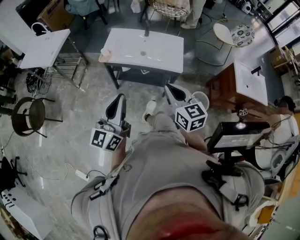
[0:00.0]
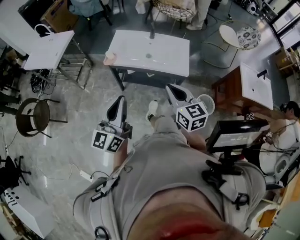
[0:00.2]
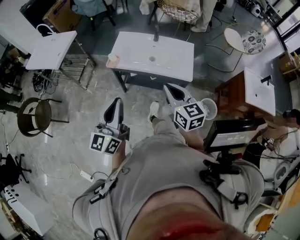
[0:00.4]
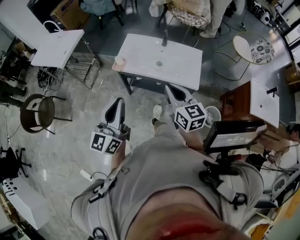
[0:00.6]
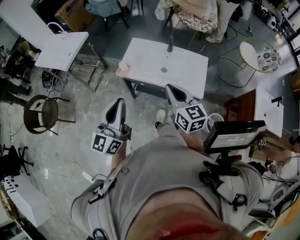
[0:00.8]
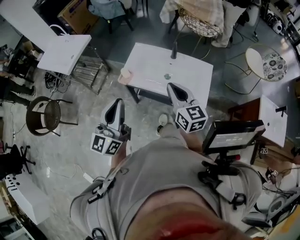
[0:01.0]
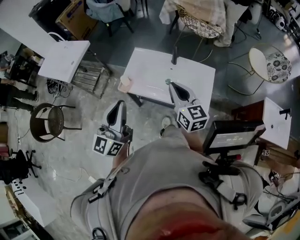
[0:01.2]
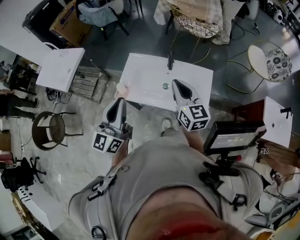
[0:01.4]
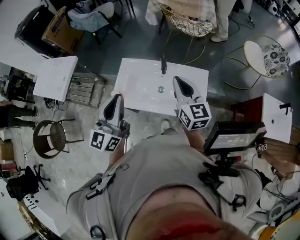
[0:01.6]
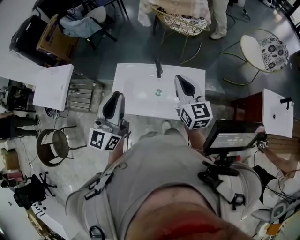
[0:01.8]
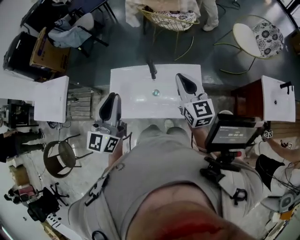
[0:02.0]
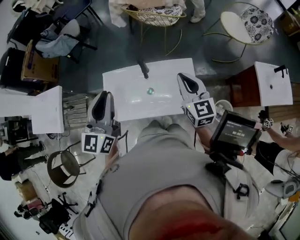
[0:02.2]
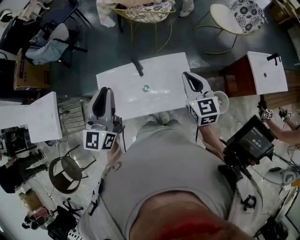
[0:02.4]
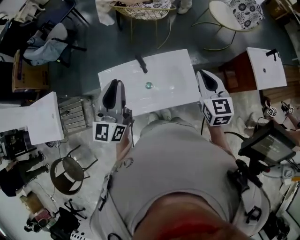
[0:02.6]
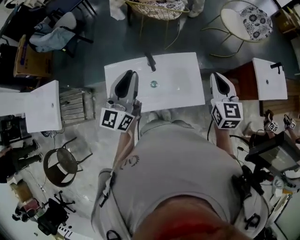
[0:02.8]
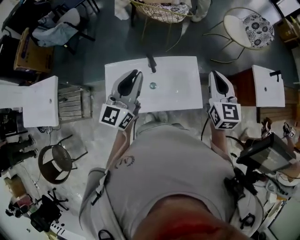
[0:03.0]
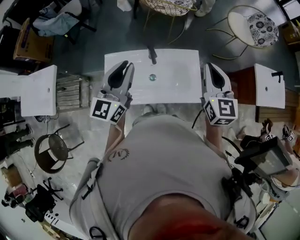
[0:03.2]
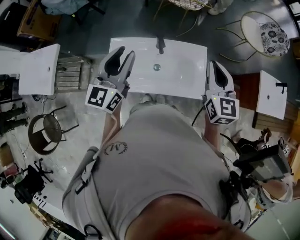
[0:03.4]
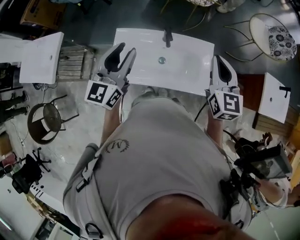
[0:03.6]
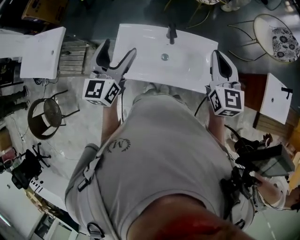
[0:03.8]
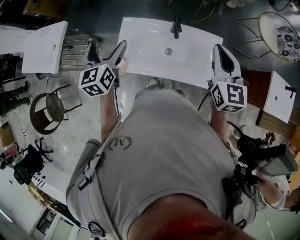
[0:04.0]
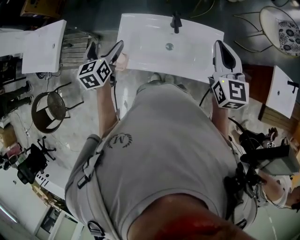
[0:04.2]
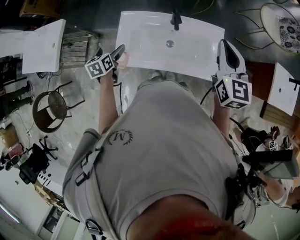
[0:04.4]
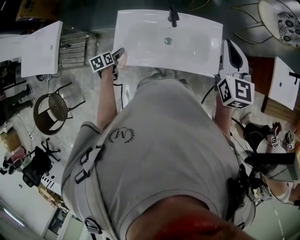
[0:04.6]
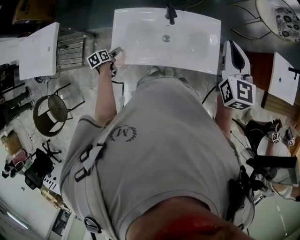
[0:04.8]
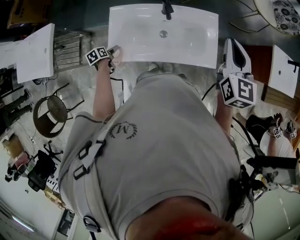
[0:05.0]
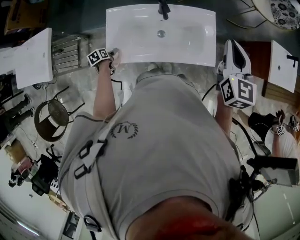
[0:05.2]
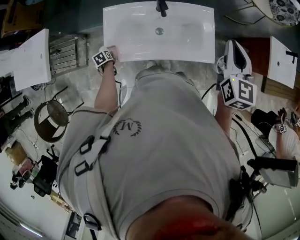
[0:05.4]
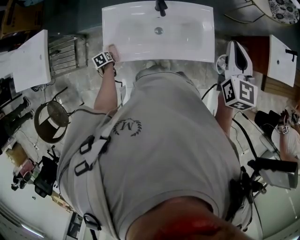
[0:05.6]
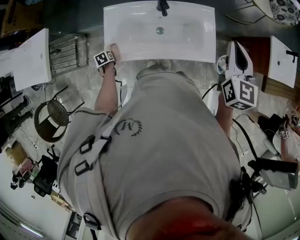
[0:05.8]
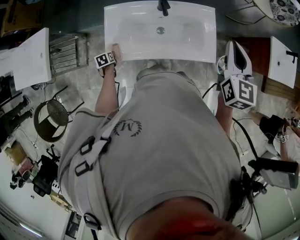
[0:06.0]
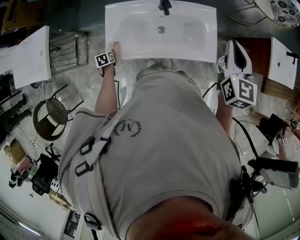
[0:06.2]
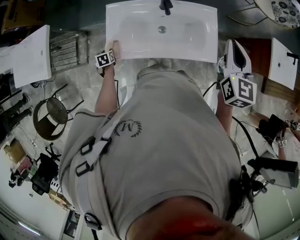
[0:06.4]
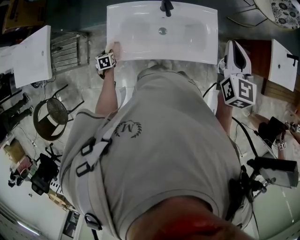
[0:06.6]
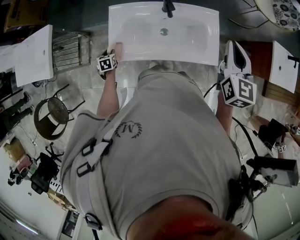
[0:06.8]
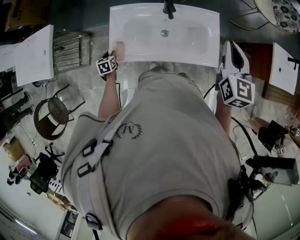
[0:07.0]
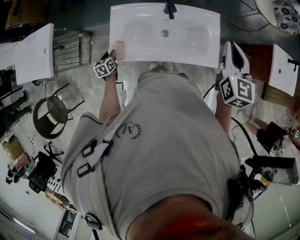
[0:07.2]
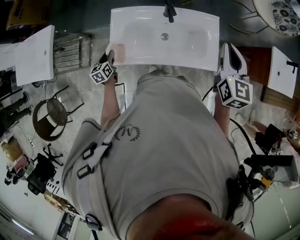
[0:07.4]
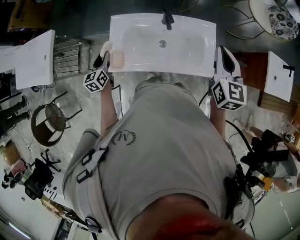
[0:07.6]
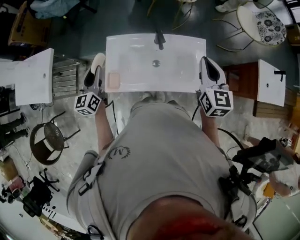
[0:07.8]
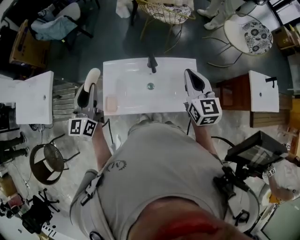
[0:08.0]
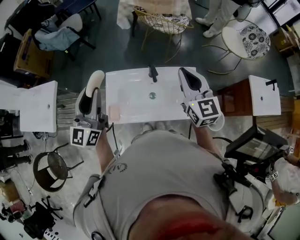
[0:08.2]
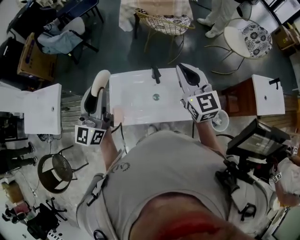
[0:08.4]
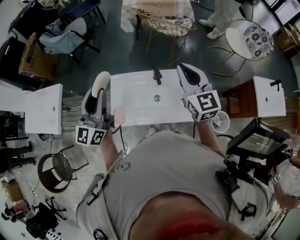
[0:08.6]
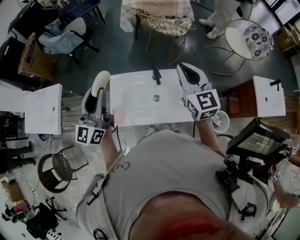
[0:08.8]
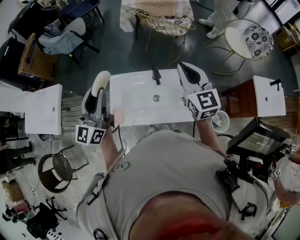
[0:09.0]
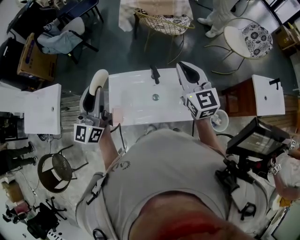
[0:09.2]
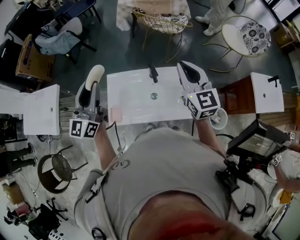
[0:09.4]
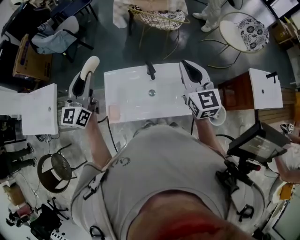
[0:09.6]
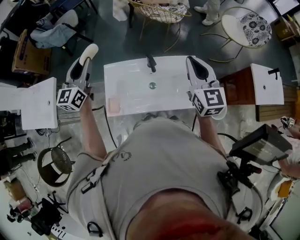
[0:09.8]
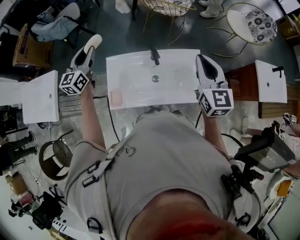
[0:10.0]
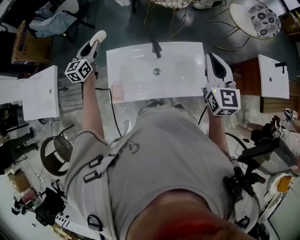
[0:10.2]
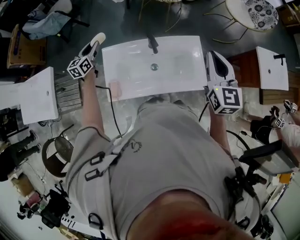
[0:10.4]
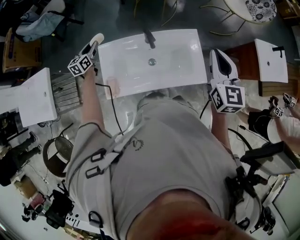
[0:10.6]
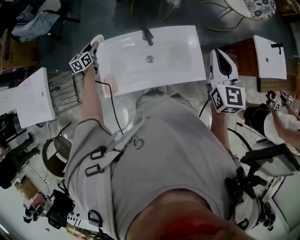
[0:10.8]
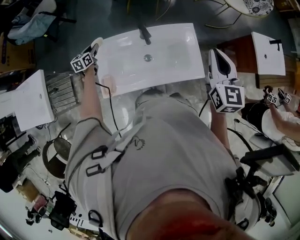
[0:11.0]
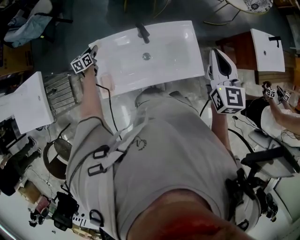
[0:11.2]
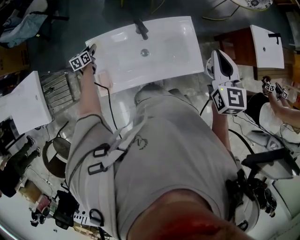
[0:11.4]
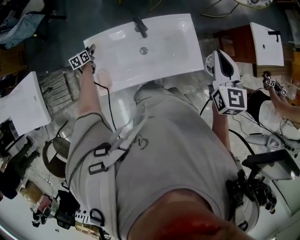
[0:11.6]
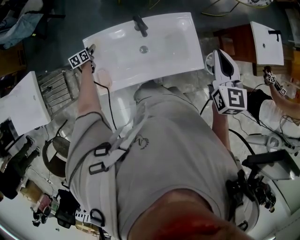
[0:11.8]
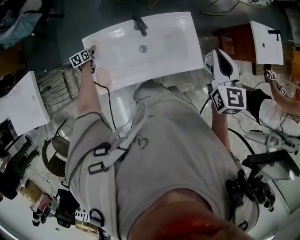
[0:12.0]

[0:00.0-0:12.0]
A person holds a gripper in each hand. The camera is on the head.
0:00.0 to 0:01.6: Both grippers are carried forward, about 40 cm.
0:01.6 to 0:03.0: The left gripper goes some 15 cm forward, and turns by about 20 degrees, while the right gripper shifts about 15 cm to the right, and rotates approximately 30 degrees.
0:03.0 to 0:04.4: The right gripper moves to the left, about 10 cm, while the left gripper travels downward and to the left by approximately 35 cm, angles its fingers downward, by some 50 degrees, and opens up.
0:04.4 to 0:06.0: The right gripper is displaced to the right by roughly 5 cm, while the left gripper moves downward, some 25 cm, swivels approximately 20 degrees, and closes its fingers.
0:06.0 to 0:07.6: The right gripper moves approximately 5 cm. Meanwhile the left gripper goes about 20 cm upward, and angles its fingers upward, by roughly 40 degrees.
0:07.6 to 0:09.0: The left gripper shifts about 35 cm upward, and tilts its fingers roughly 40 degrees upward. The right gripper is displaced upward, forward and to the left by about 15 cm, and swivels roughly 20 degrees.
0:09.0 to 0:10.4: The right gripper goes approximately 10 cm to the right. Meanwhile the left gripper is displaced downward and forward by roughly 30 cm, and angles its fingers downward, by roughly 30 degrees.
0:10.4 to 0:12.0: The right gripper ends up about 5 cm from where it was; the left gripper heads downward, covering roughly 30 cm, and rotates some 30 degrees.

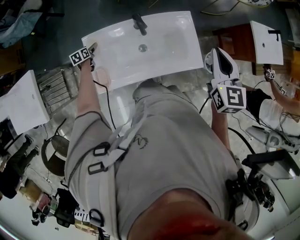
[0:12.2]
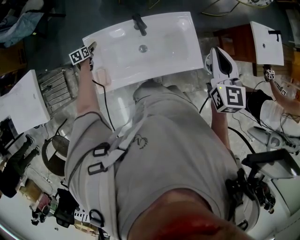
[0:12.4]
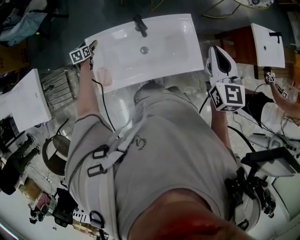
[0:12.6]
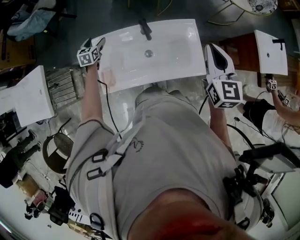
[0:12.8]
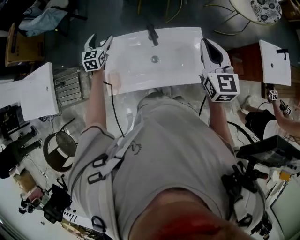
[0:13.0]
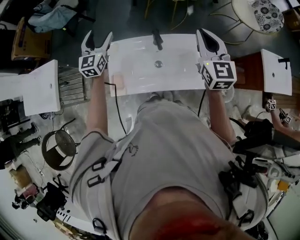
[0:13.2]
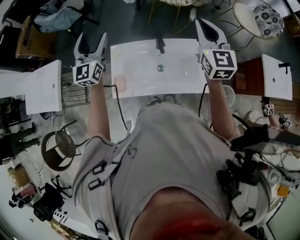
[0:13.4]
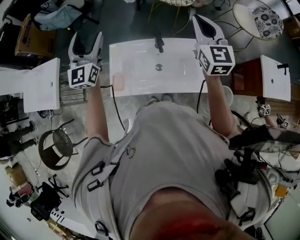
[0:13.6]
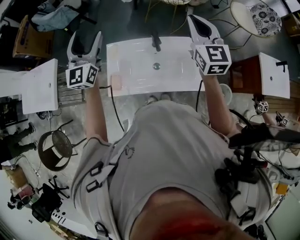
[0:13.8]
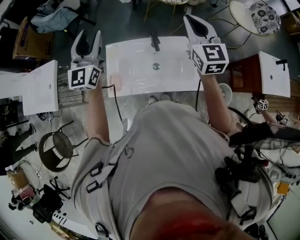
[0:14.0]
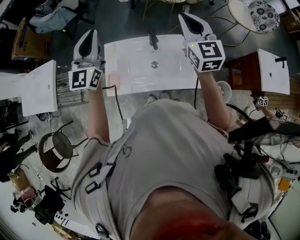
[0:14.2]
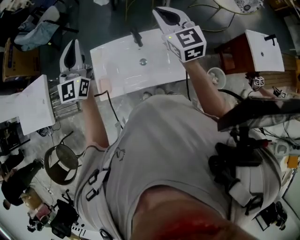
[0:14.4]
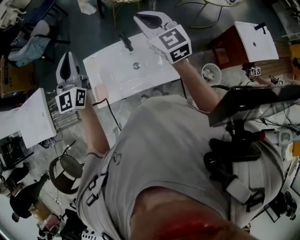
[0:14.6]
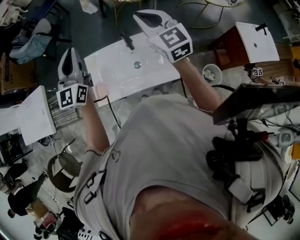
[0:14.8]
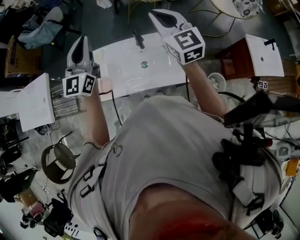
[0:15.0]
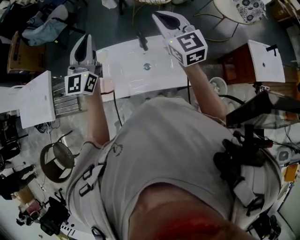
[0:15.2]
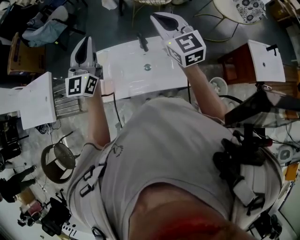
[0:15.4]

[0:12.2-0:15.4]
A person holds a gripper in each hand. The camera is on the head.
0:12.2 to 0:13.8: The right gripper shifts approximately 20 cm forward, to the left and upward, and turns by approximately 30 degrees. The left gripper is displaced upward by some 50 cm, and tips its fingers upward by approximately 60 degrees.
0:13.8 to 0:15.4: The right gripper heads to the left, covering about 5 cm. Meanwhile the left gripper shifts roughly 5 cm to the right, and closes.

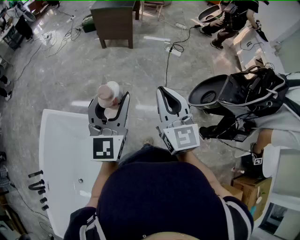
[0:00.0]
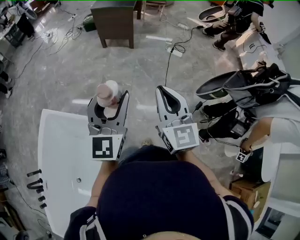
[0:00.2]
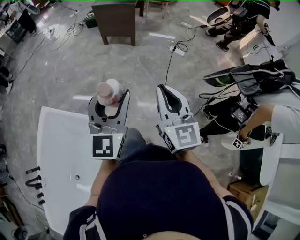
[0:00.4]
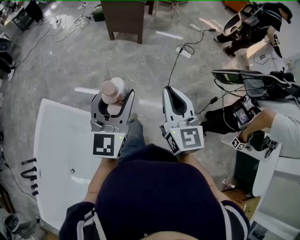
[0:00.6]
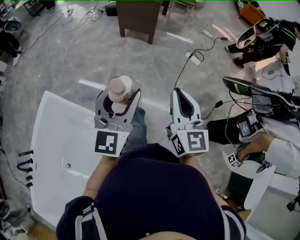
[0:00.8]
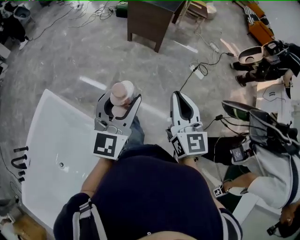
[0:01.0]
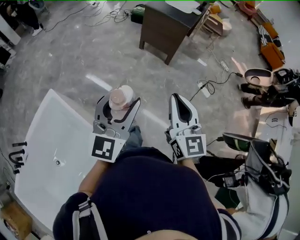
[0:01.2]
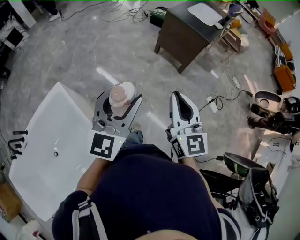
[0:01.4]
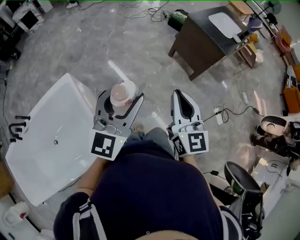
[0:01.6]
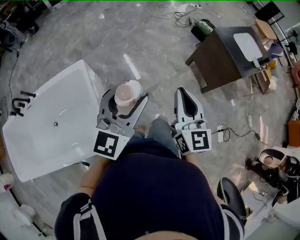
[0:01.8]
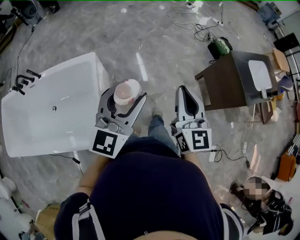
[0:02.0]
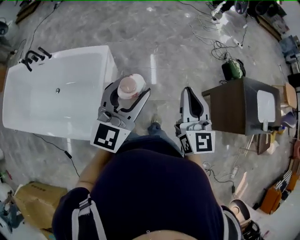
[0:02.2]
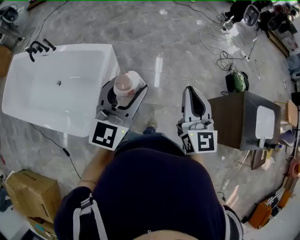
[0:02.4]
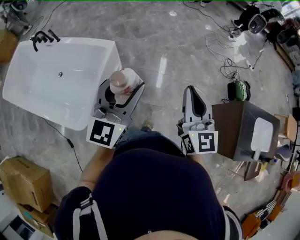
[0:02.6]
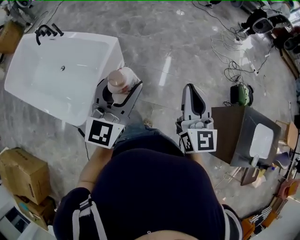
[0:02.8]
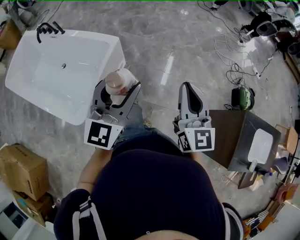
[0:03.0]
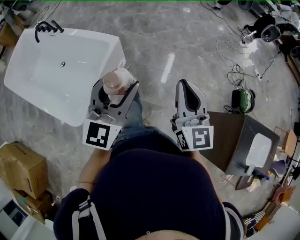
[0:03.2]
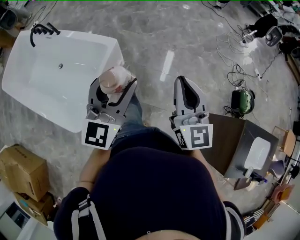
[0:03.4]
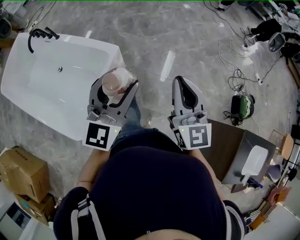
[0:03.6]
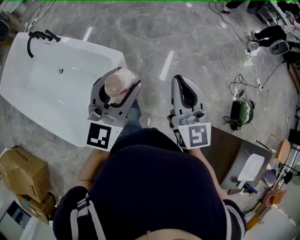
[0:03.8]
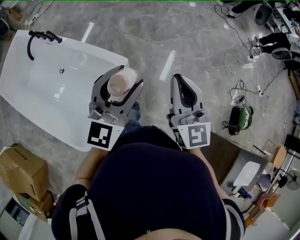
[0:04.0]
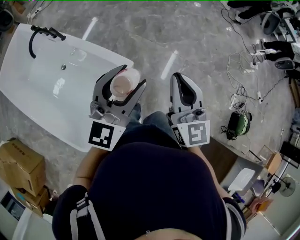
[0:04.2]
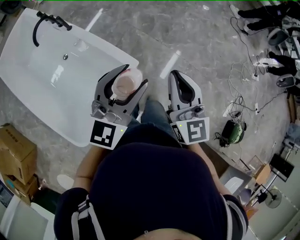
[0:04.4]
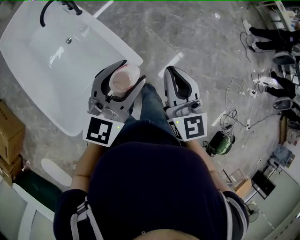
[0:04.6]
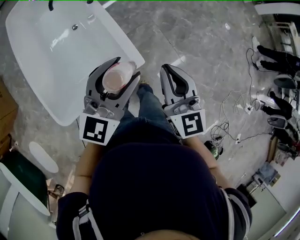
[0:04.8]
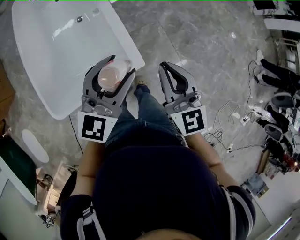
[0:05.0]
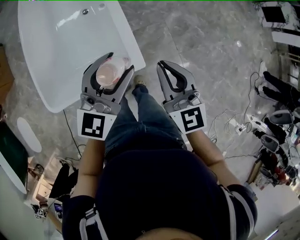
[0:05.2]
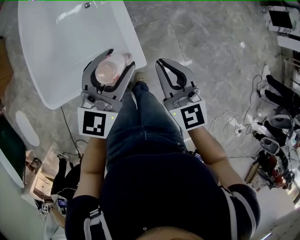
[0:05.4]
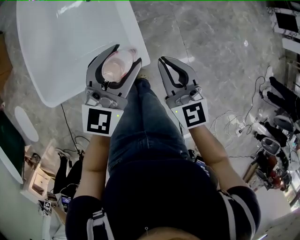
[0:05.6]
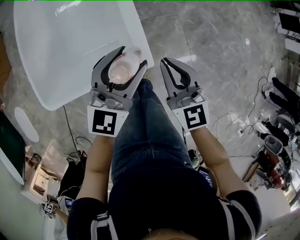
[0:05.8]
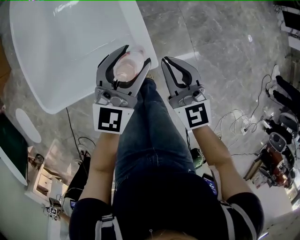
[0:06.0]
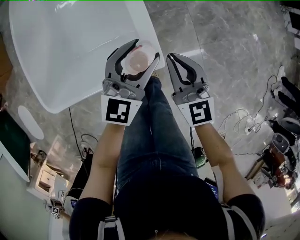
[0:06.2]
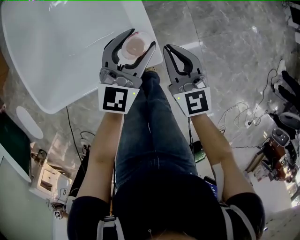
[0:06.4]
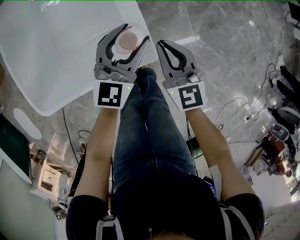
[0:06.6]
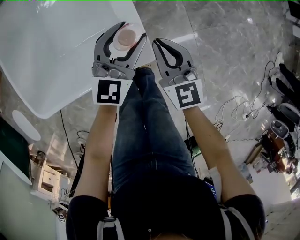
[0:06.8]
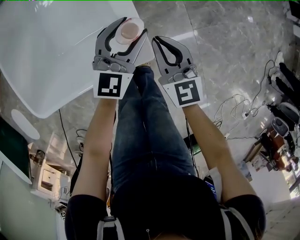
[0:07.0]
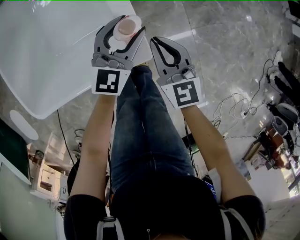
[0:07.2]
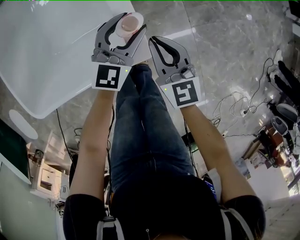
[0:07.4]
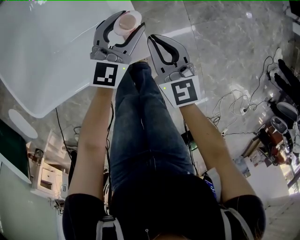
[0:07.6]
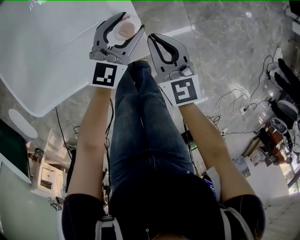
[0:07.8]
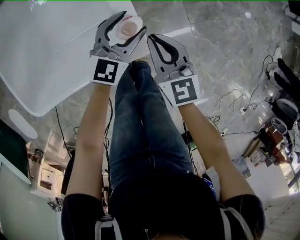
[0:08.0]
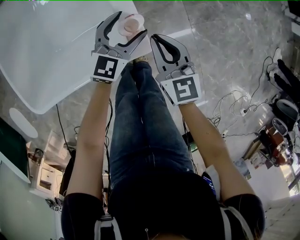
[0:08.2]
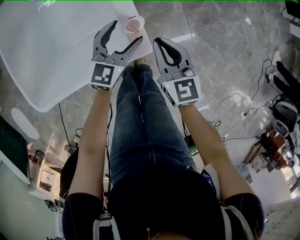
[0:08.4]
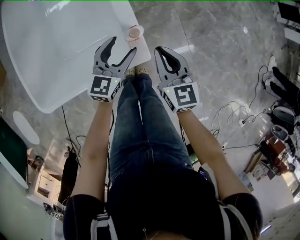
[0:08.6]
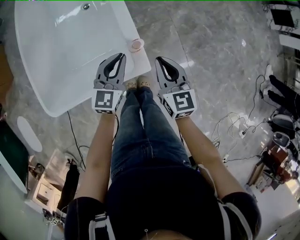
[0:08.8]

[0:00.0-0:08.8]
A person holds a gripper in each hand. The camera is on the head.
0:00.0 to 0:01.4: The left gripper changes place by approximately 35 cm, and changes its angle by some 20 degrees, while the right gripper moves some 40 cm, and changes its angle by about 30 degrees.
0:01.4 to 0:03.0: The right gripper moves approximately 40 cm, and turns by roughly 60 degrees. The left gripper ends up approximately 25 cm from where it was, and changes its angle by approximately 70 degrees.
0:03.0 to 0:04.4: Both grippers are carried forward and to the left, about 50 cm. The right gripper swivels approximately 20 degrees.
0:04.4 to 0:05.8: The grippers both shift downward by approximately 20 cm. The left gripper rotates about 40 degrees, while the right gripper changes its angle by about 50 degrees.
0:05.8 to 0:07.4: Both grippers travel together downward, some 20 cm.
0:07.4 to 0:08.8: The left gripper heads upward, backward and to the left, covering approximately 15 cm, and closes up. The right gripper heads upward, covering roughly 10 cm.
